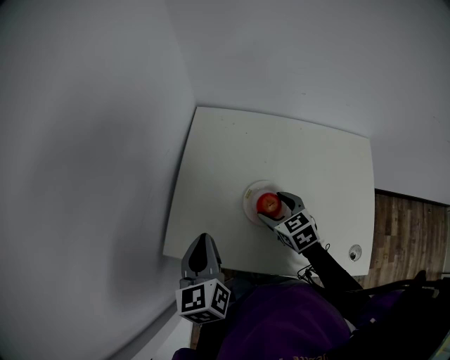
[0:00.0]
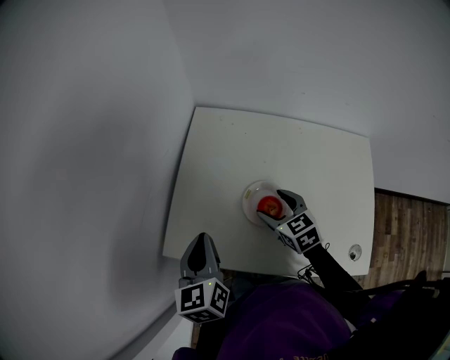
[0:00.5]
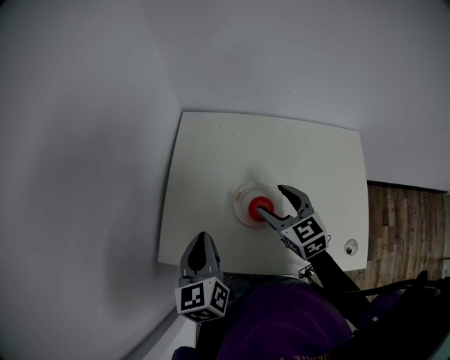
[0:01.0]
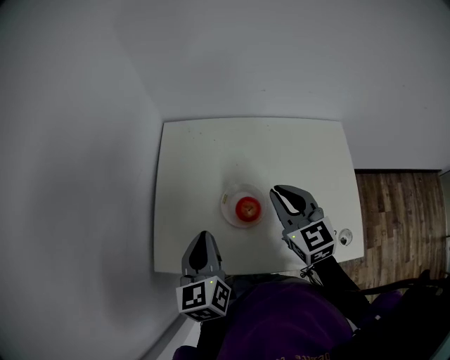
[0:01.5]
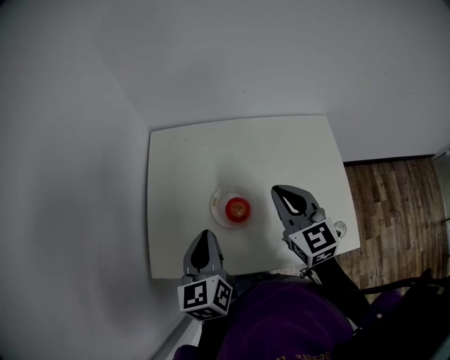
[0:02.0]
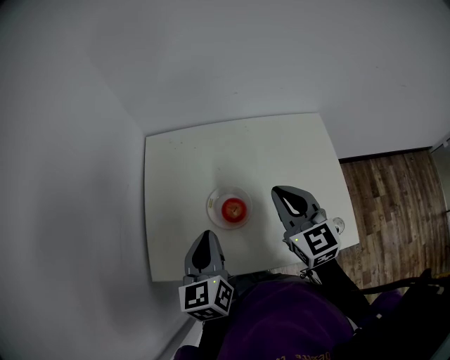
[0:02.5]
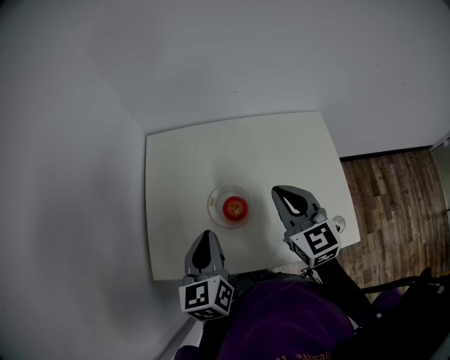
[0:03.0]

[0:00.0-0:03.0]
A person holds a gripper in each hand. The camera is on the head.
0:00.0 to 0:01.5: The right gripper shifts some 15 cm upward and to the right, rotates about 30 degrees, and closes its fingers; the left gripper is displaced to the right by approximately 5 cm.
0:01.5 to 0:03.0: The right gripper ends up some 5 cm from where it was.

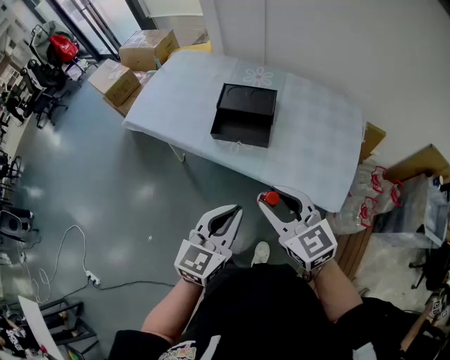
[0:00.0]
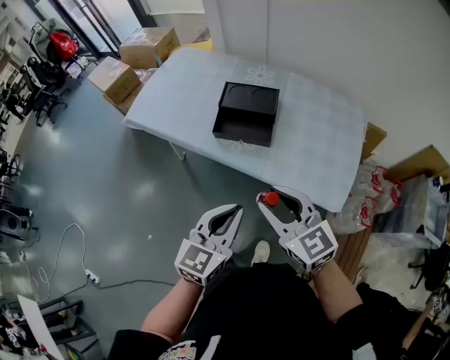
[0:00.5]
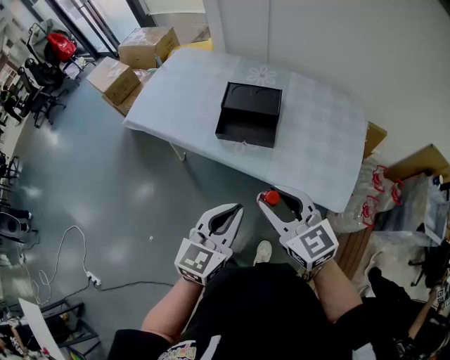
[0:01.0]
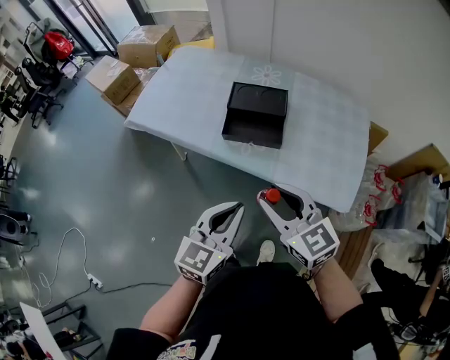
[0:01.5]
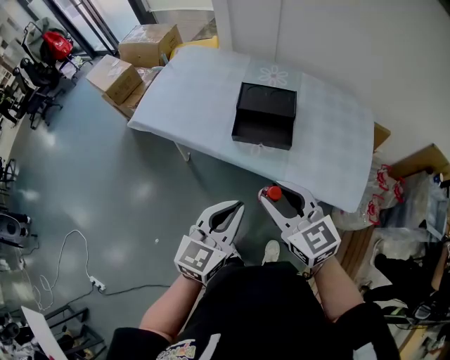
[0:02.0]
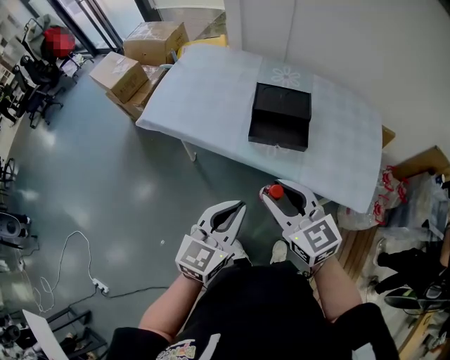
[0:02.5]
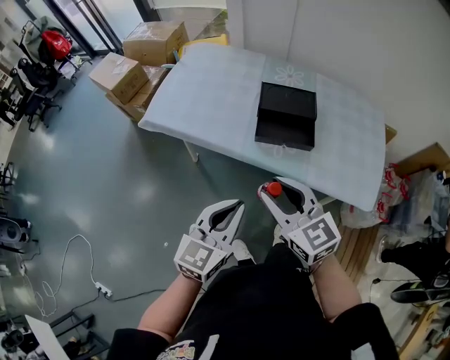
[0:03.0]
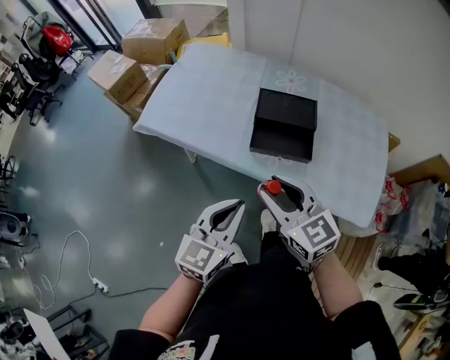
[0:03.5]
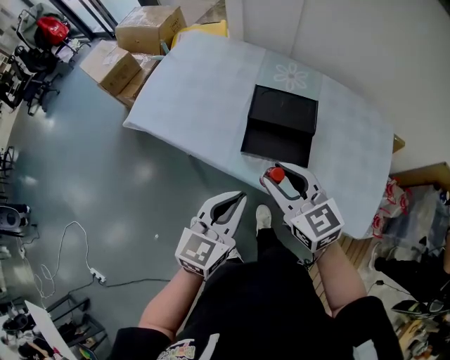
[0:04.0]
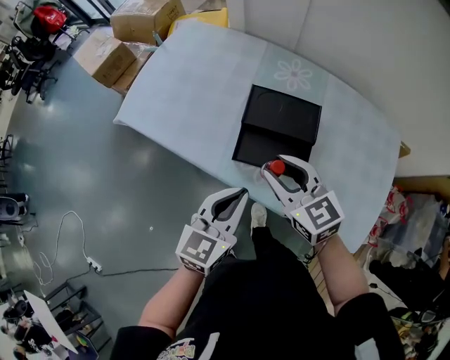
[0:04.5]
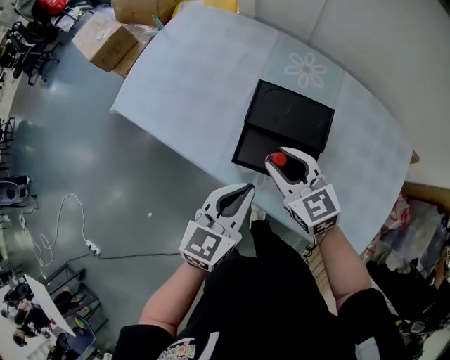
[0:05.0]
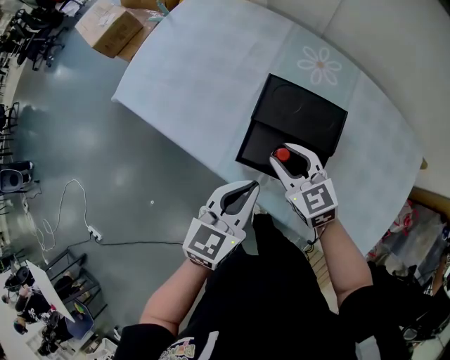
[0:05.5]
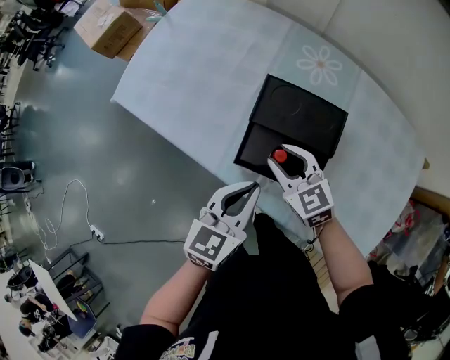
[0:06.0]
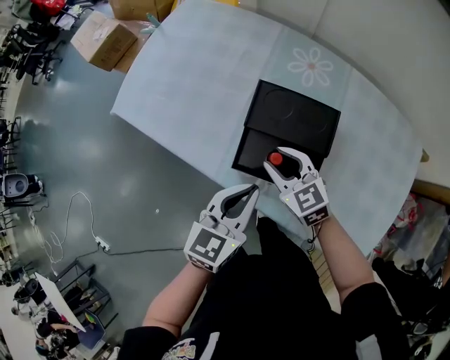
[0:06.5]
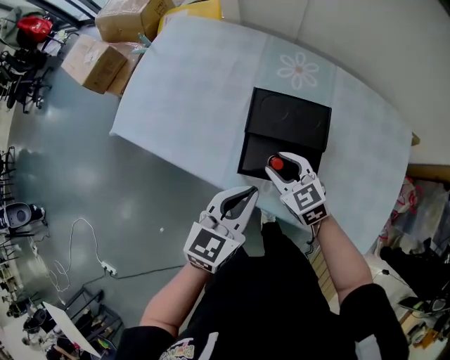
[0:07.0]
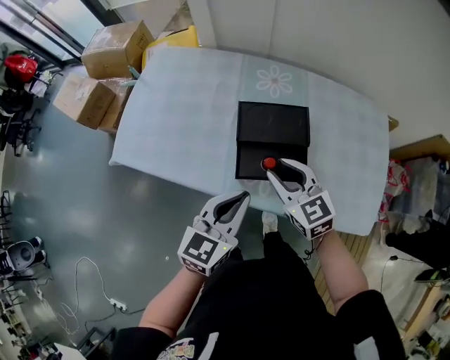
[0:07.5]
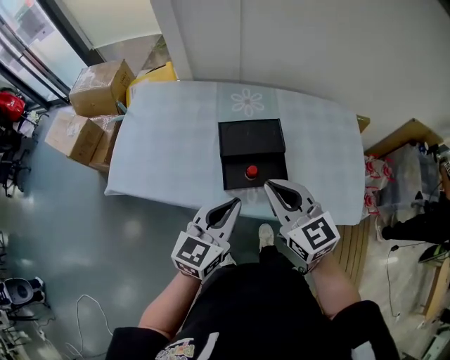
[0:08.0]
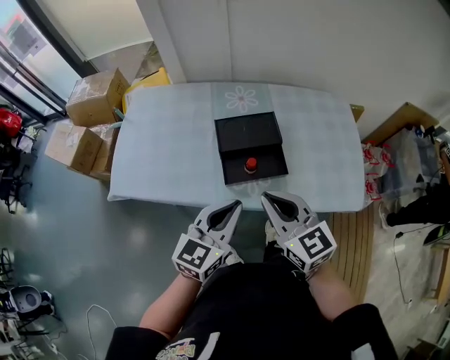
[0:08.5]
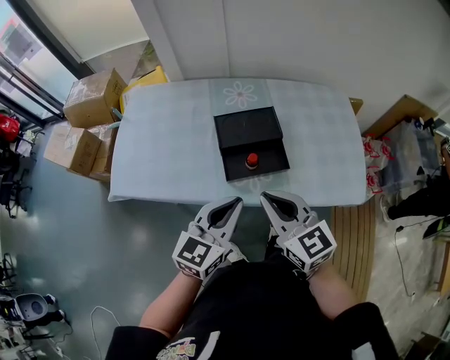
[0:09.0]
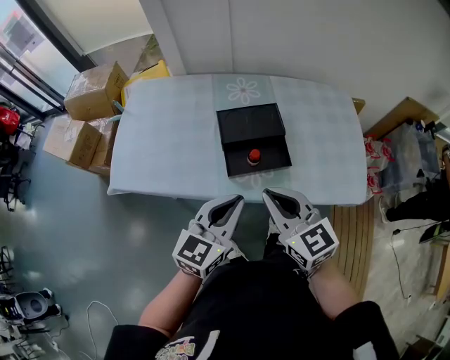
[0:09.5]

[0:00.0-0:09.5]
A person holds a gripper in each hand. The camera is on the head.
0:00.0 to 0:02.0: The two grippers go roughly 10 cm to the left.
0:02.0 to 0:04.0: Both grippers travel together forward, approximately 15 cm.
0:04.0 to 0:05.5: The left gripper heads forward, downward and to the right, covering some 15 cm. The right gripper shifts some 20 cm downward and forward.
0:05.5 to 0:07.5: The grippers both shift upward by approximately 10 cm. The left gripper rotates roughly 20 degrees; the right gripper swivels approximately 20 degrees.
0:07.5 to 0:09.5: The left gripper shifts about 5 cm backward, while the right gripper moves backward and upward, about 15 cm, and closes its fingers.

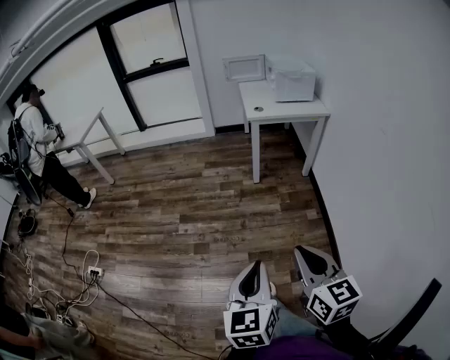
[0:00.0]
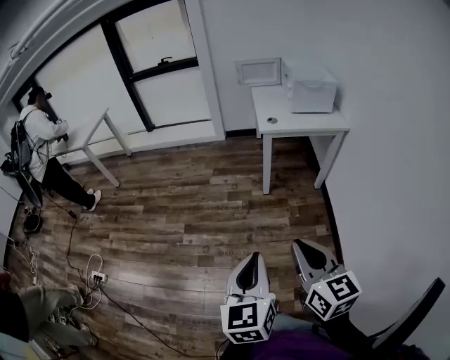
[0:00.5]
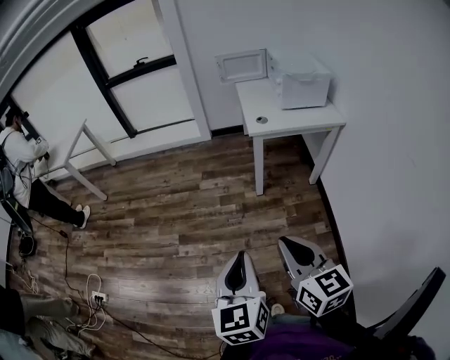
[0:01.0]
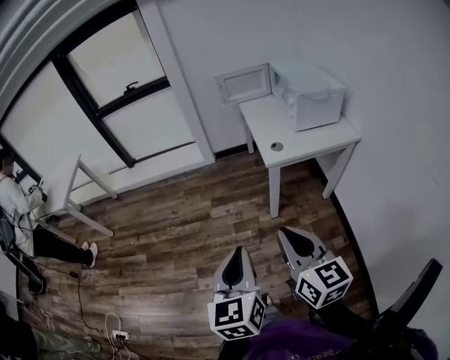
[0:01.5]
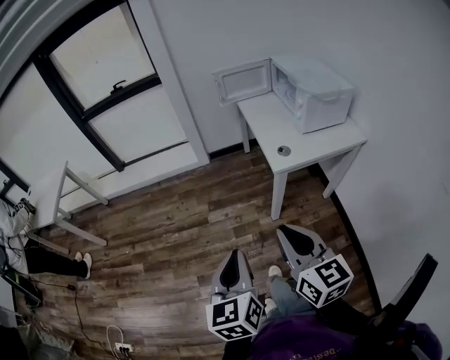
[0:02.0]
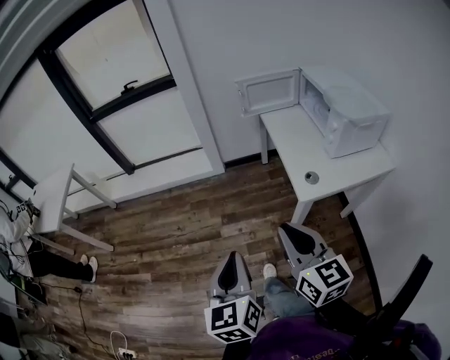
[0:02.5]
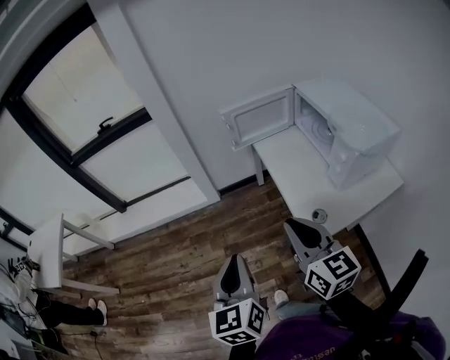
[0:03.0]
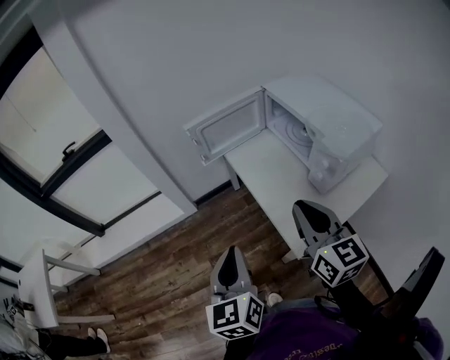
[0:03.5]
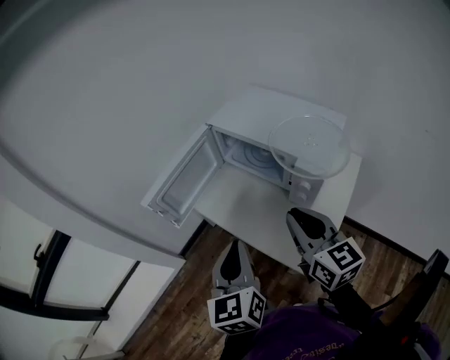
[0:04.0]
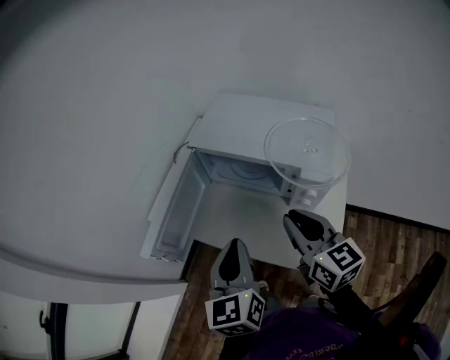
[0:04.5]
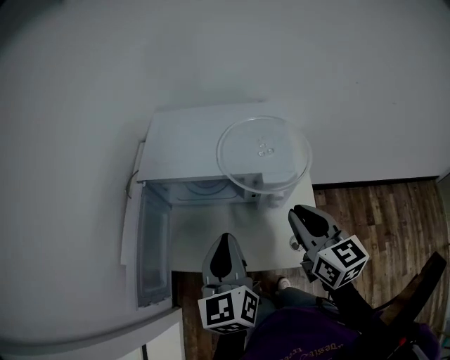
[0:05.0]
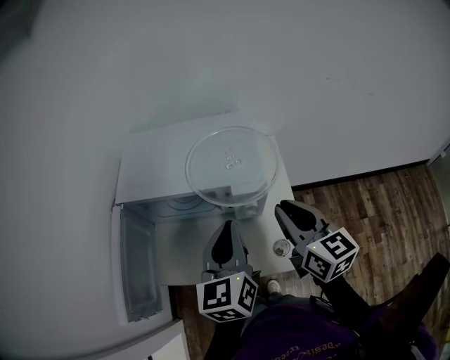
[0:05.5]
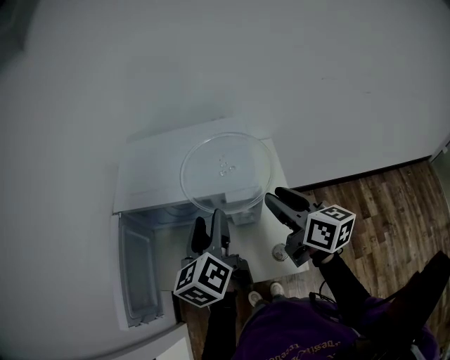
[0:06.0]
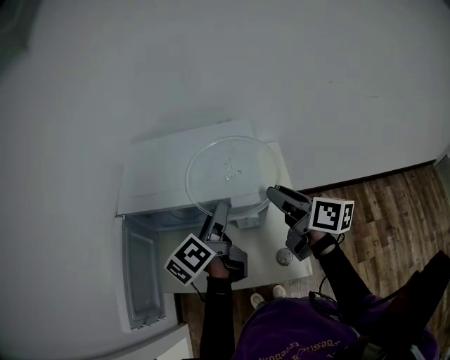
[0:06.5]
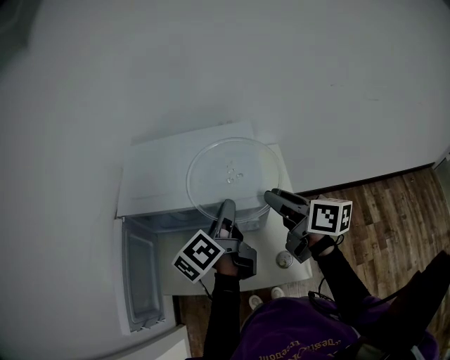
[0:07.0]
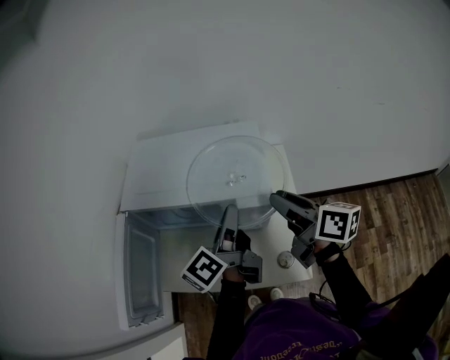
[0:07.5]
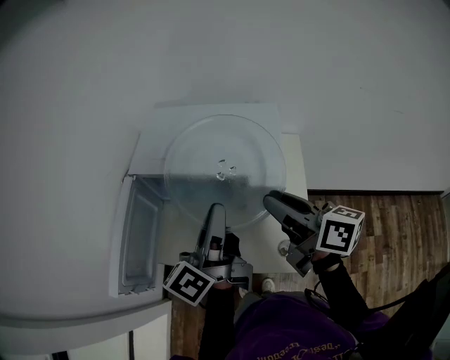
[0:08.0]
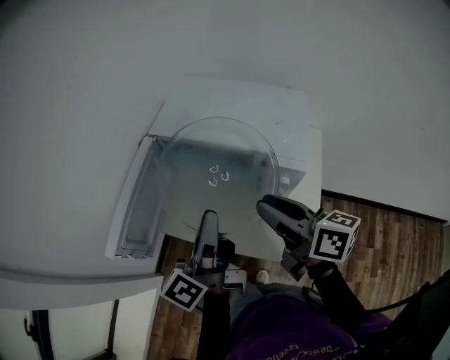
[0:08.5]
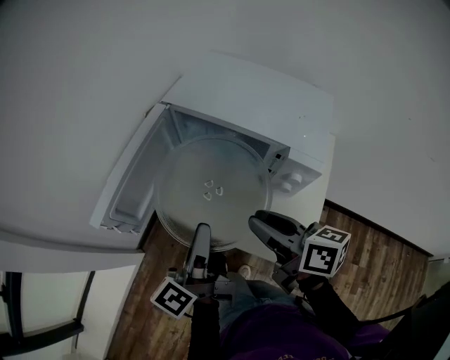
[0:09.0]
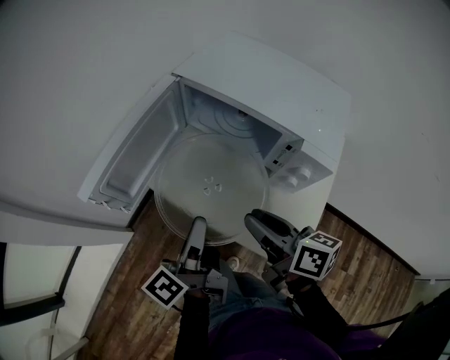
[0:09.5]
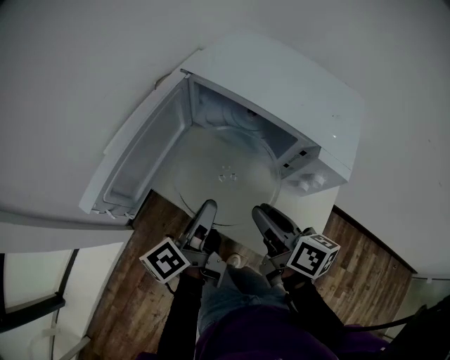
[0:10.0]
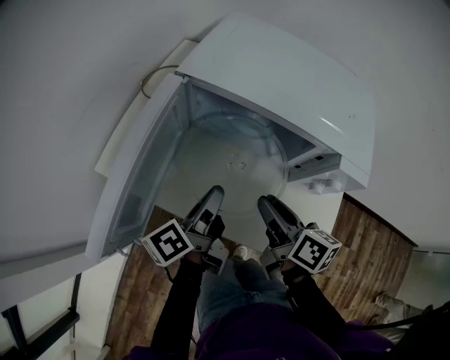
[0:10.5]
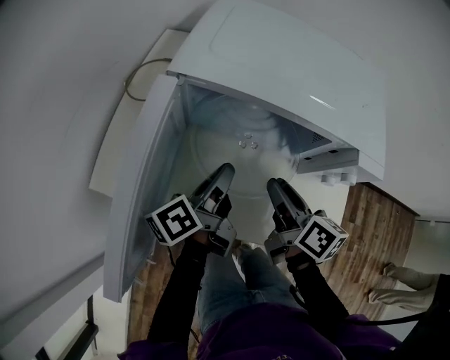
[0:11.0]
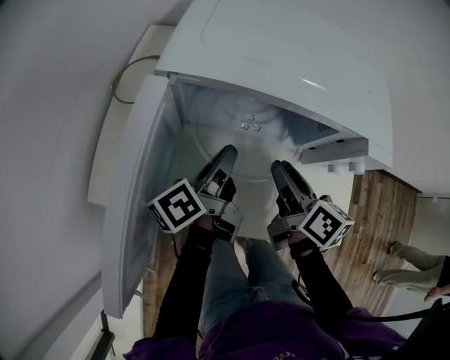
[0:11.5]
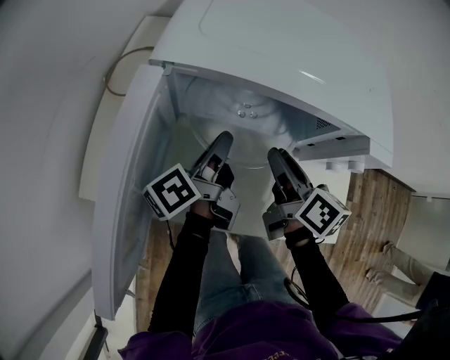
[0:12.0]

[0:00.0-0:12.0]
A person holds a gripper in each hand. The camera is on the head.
0:00.0 to 0:02.0: Both grippers are carried forward, about 60 cm.
0:02.0 to 0:04.0: The pair of grippers is taken some 60 cm. The left gripper rotates some 40 degrees, while the right gripper changes its angle by about 40 degrees.
0:04.0 to 0:06.0: The left gripper changes place by some 25 cm, turns by approximately 40 degrees, and opens up, while the right gripper moves approximately 15 cm, changes its angle by some 40 degrees, and opens.
0:06.0 to 0:08.0: The right gripper shifts some 10 cm to the left, and changes its angle by some 20 degrees. The left gripper changes place by some 5 cm, turns by roughly 30 degrees, and closes.
0:08.0 to 0:10.0: Both grippers move downward and to the left, some 20 cm. The left gripper swivels some 20 degrees.
0:10.0 to 0:12.0: The left gripper changes place by about 20 cm, and changes its angle by about 20 degrees, while the right gripper moves about 15 cm, and rotates some 30 degrees.

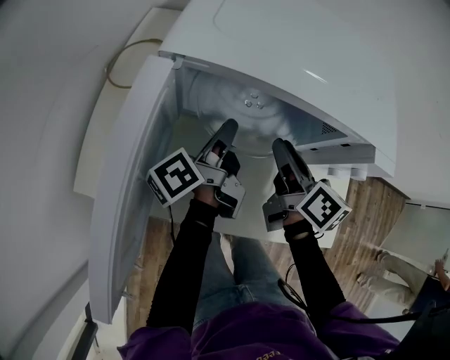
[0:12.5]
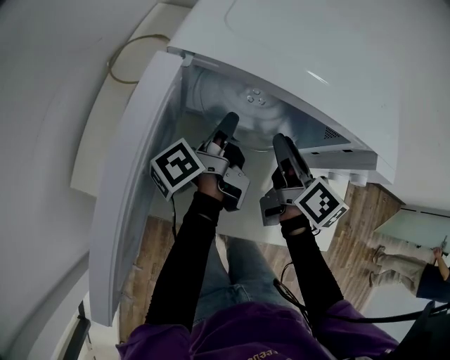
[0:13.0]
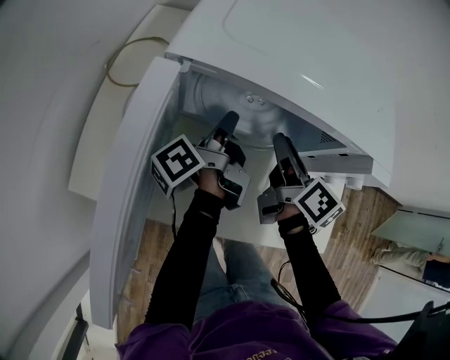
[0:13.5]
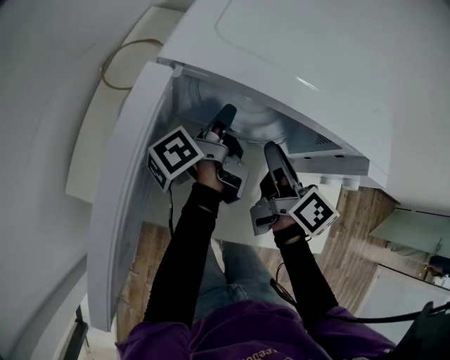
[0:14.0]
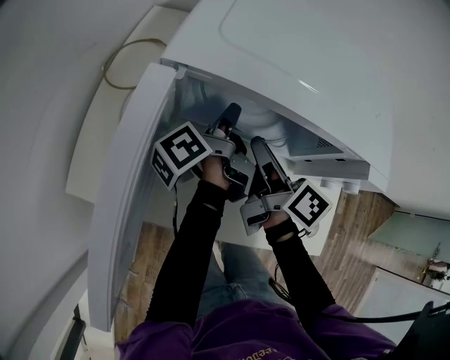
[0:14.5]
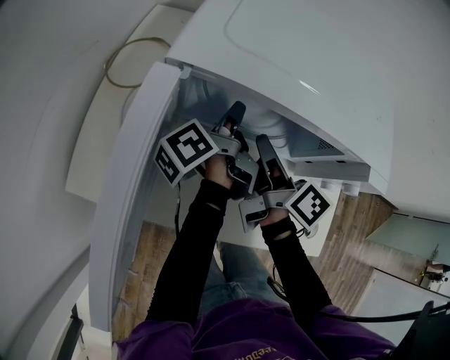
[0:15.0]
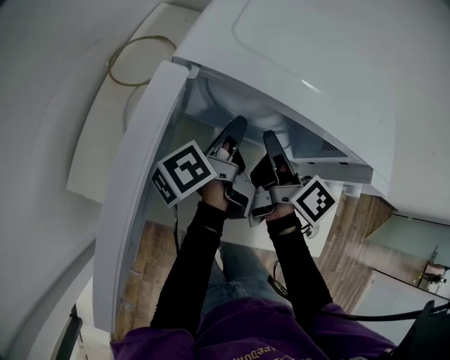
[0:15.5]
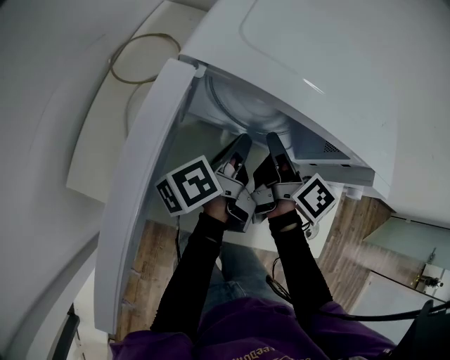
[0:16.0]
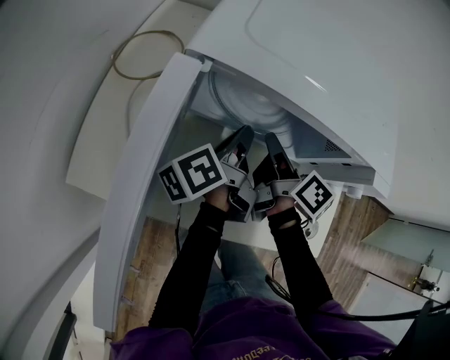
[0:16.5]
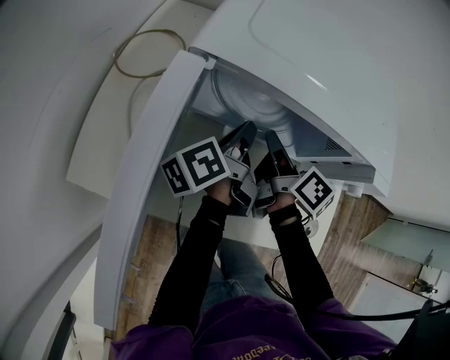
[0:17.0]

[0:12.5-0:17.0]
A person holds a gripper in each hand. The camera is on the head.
0:12.5 to 0:14.5: The left gripper shifts about 5 cm forward.
0:14.5 to 0:17.0: The grippers move only a little.
